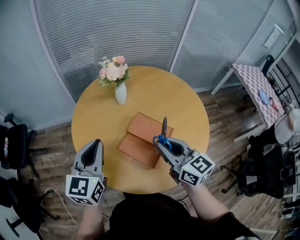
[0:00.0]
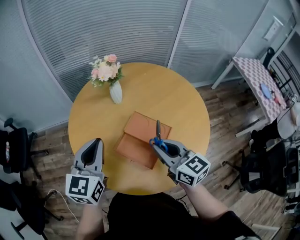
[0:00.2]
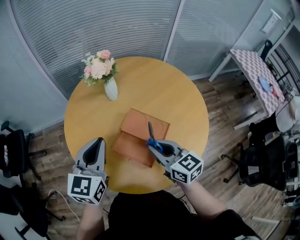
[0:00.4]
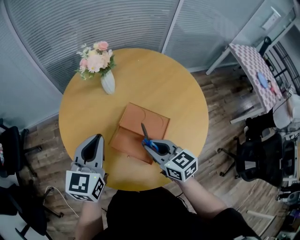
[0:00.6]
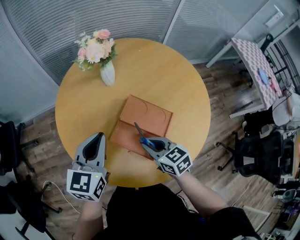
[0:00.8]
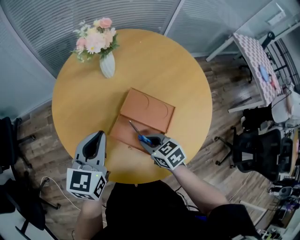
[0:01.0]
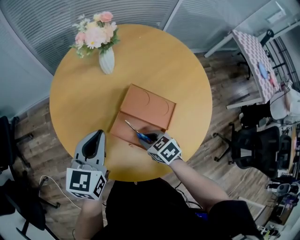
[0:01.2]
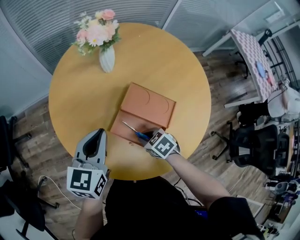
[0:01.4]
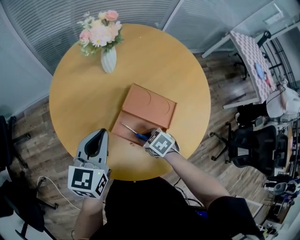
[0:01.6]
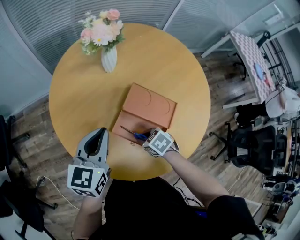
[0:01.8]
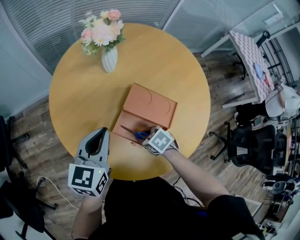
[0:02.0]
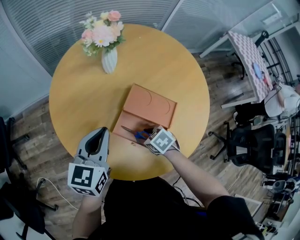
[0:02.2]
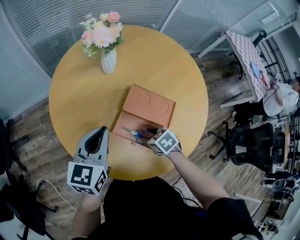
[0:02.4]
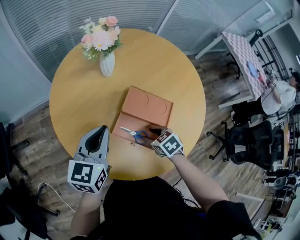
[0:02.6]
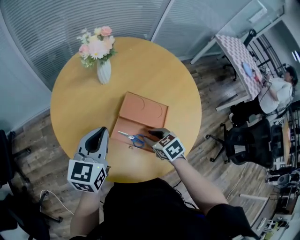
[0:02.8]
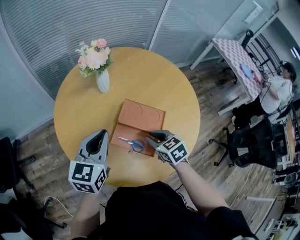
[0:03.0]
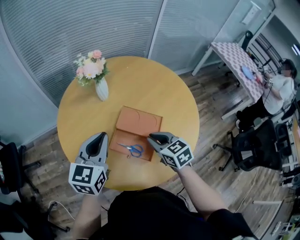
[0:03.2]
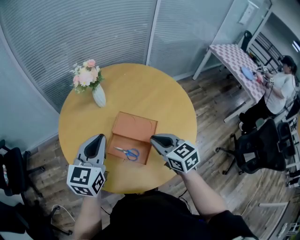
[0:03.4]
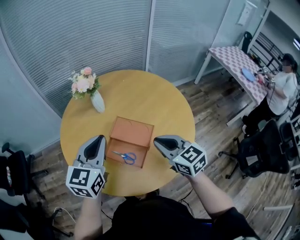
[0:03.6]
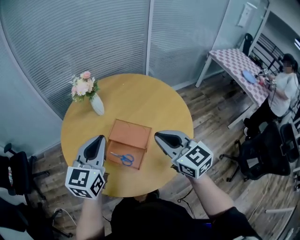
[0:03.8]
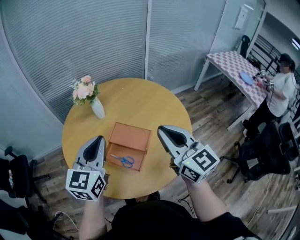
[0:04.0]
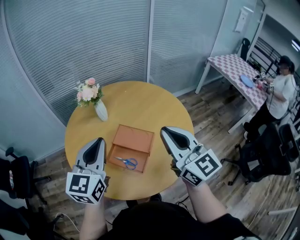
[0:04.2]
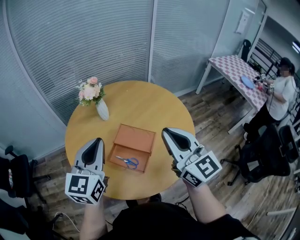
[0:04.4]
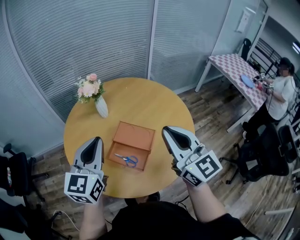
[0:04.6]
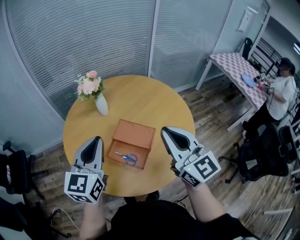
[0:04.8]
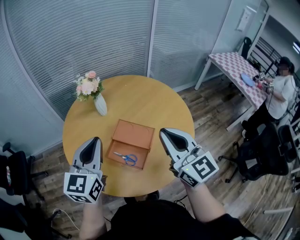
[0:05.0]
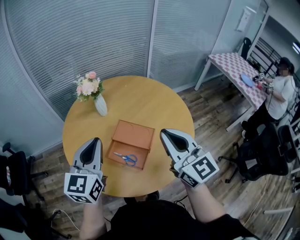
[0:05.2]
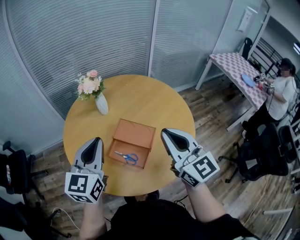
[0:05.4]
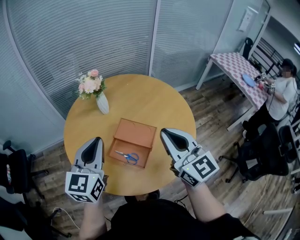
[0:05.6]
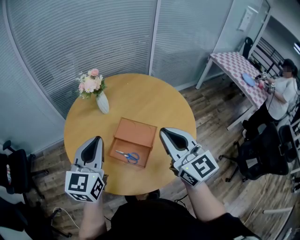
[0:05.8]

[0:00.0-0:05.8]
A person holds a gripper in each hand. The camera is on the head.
0.0 to 1.4 s: The left gripper moves downward, some 15 cm; the right gripper heads downward, covering roughly 30 cm, and tips its fingers downward by roughly 50 degrees.
1.4 to 2.8 s: The right gripper heads upward, covering approximately 5 cm.
2.8 to 4.4 s: The left gripper goes roughly 20 cm upward and to the right, while the right gripper heads upward, covering roughly 35 cm, angles its fingers upward, by some 60 degrees, and closes.
4.4 to 5.8 s: The grippers make only small movements.

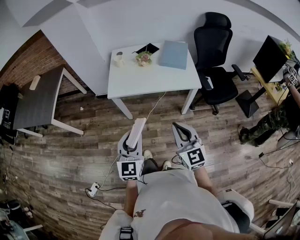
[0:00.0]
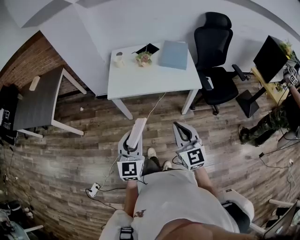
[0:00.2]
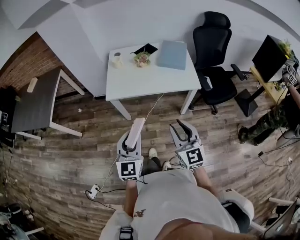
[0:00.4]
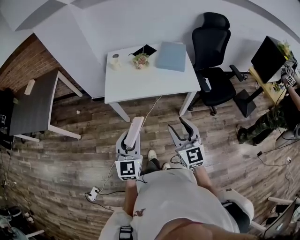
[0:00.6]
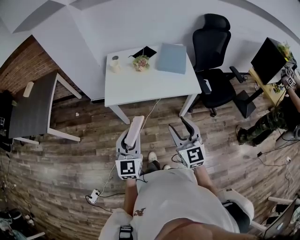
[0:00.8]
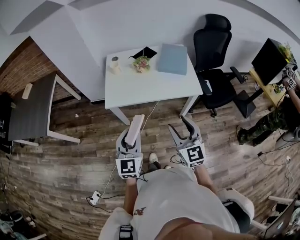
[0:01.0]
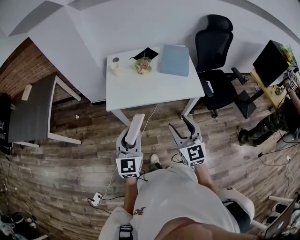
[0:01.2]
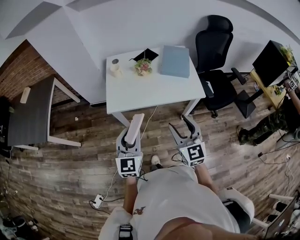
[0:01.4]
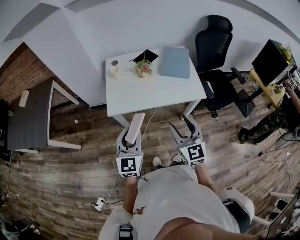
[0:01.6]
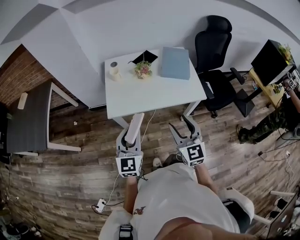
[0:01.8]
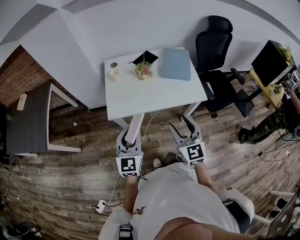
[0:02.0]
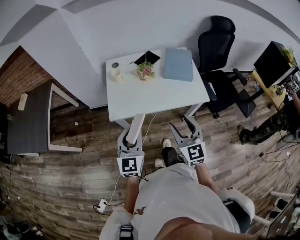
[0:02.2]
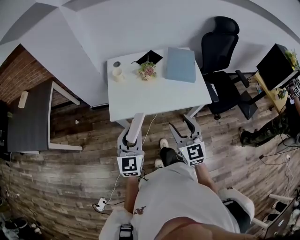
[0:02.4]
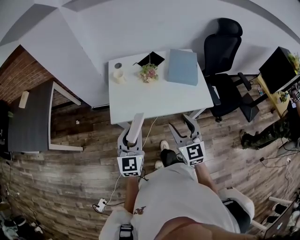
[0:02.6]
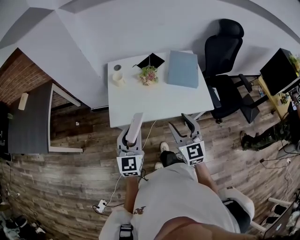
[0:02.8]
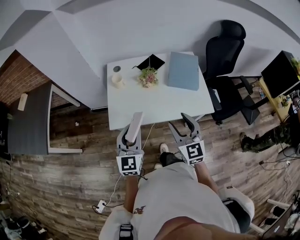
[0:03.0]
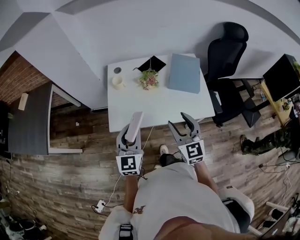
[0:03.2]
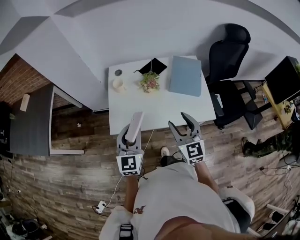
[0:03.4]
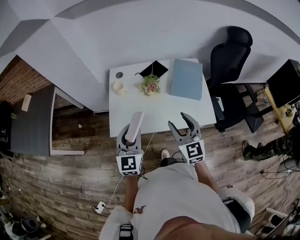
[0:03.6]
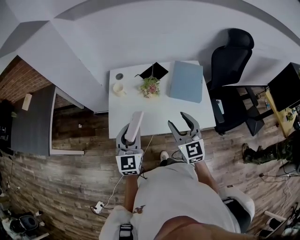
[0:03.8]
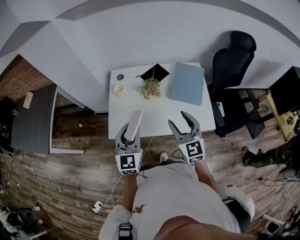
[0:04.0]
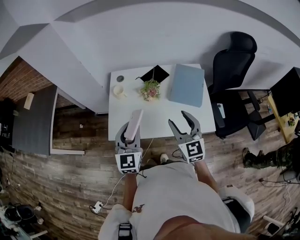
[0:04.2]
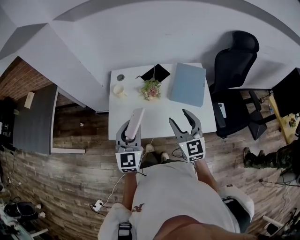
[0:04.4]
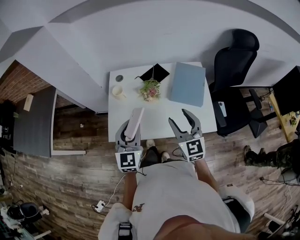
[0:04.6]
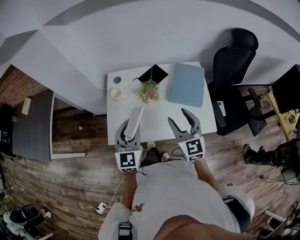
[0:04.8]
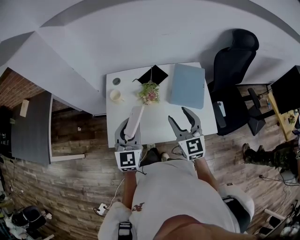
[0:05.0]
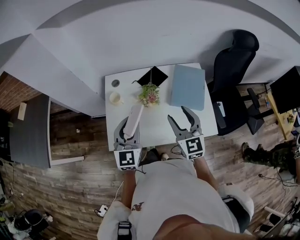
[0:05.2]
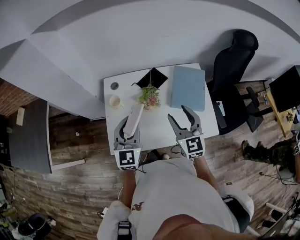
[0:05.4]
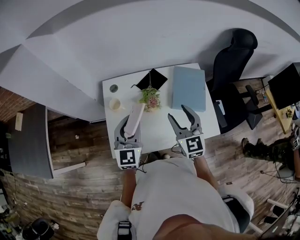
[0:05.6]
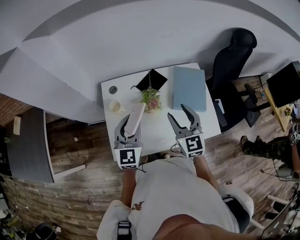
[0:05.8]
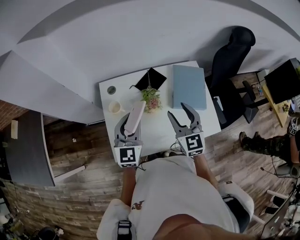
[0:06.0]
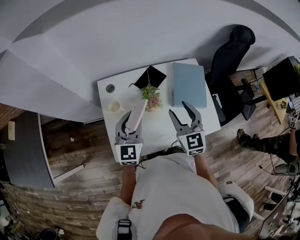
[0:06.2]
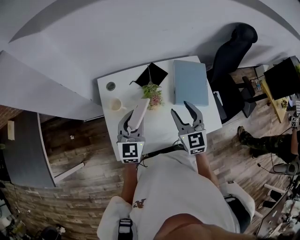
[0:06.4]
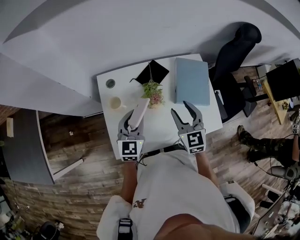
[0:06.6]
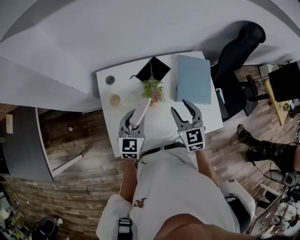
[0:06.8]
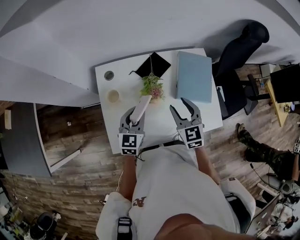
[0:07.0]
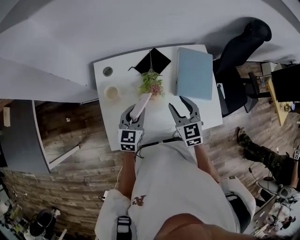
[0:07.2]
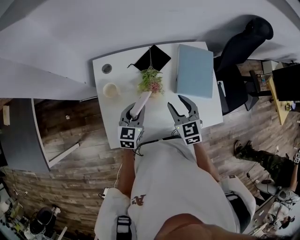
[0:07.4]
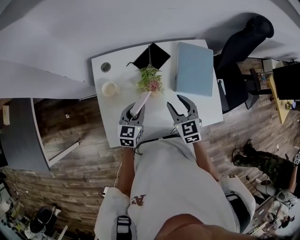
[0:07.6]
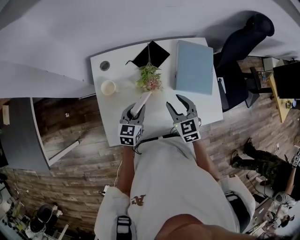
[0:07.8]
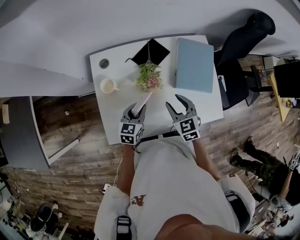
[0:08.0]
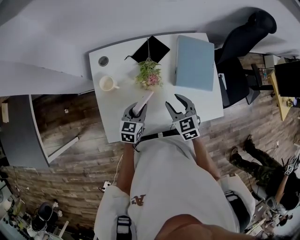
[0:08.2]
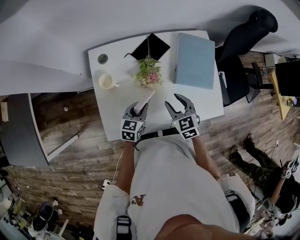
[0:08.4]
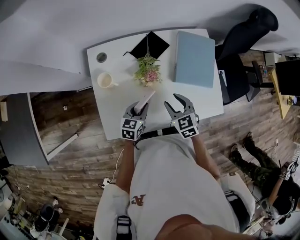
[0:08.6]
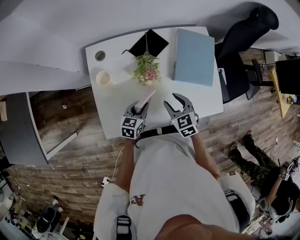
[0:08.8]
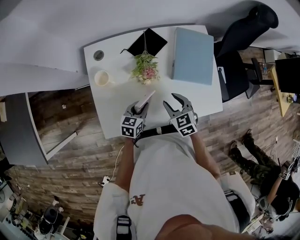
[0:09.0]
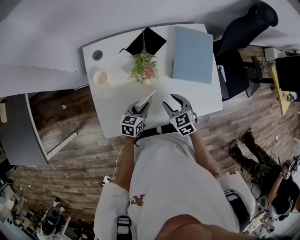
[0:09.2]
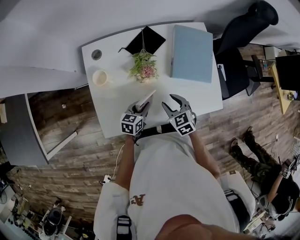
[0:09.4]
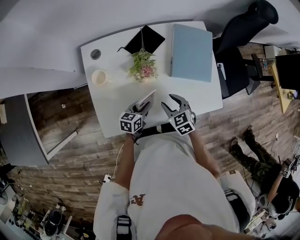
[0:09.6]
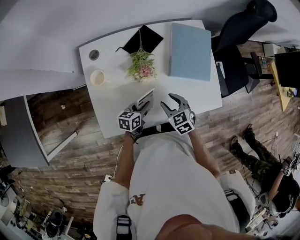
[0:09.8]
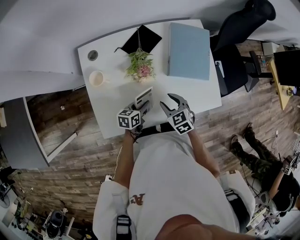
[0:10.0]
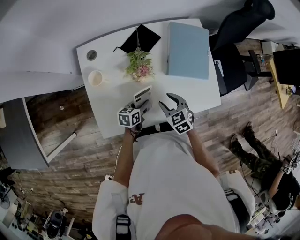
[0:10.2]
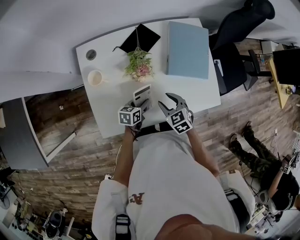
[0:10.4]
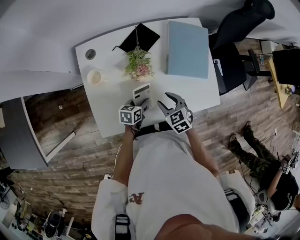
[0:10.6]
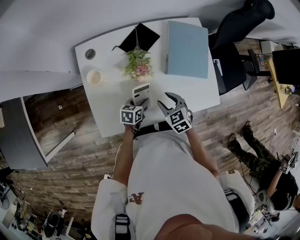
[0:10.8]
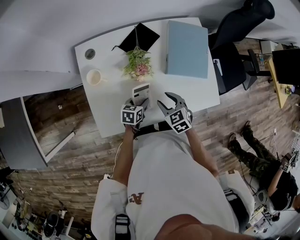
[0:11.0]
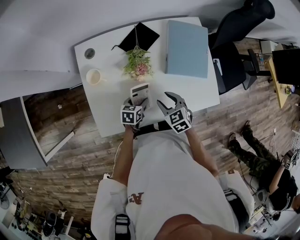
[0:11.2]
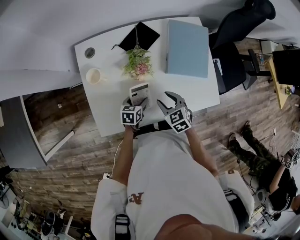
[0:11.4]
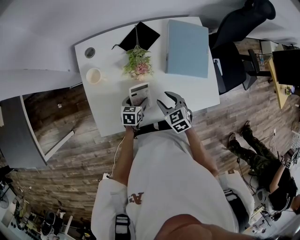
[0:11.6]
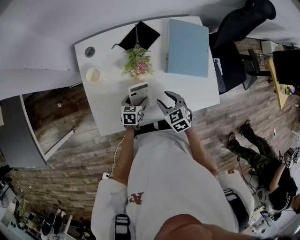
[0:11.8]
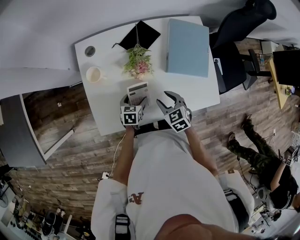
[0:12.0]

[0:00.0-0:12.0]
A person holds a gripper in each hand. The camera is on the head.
0.0 to 1.6 s: The grippers both shift forward by approximately 20 cm. The right gripper opens its fingers.
1.6 to 3.0 s: Both grippers travel together forward, approximately 15 cm.
3.0 to 4.4 s: Both grippers travel together forward and to the right, approximately 15 cm.
4.4 to 6.0 s: Both grippers travel together forward, roughly 15 cm.
6.0 to 7.6 s: The grippers both shift downward by some 15 cm. The left gripper changes its angle by some 30 degrees. Meanwhile the right gripper turns by roughly 20 degrees.
7.6 to 9.0 s: The left gripper is displaced downward and backward by some 10 cm. The right gripper travels downward by roughly 10 cm.
9.0 to 10.4 s: The left gripper shifts approximately 5 cm downward.
10.4 to 12.0 s: The left gripper opens up.

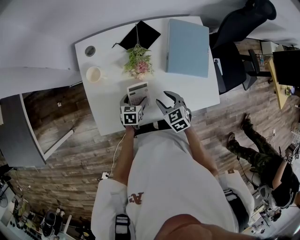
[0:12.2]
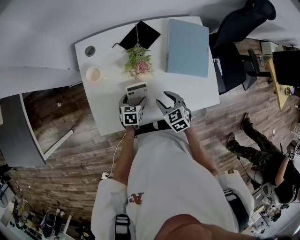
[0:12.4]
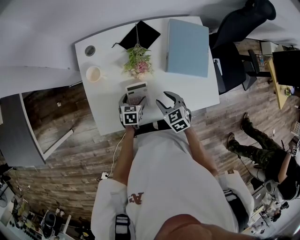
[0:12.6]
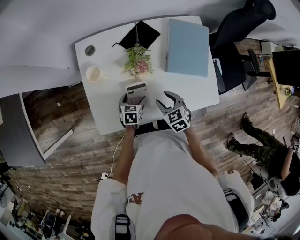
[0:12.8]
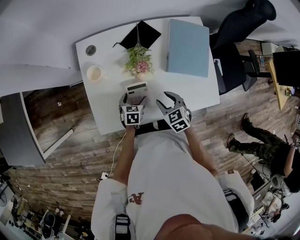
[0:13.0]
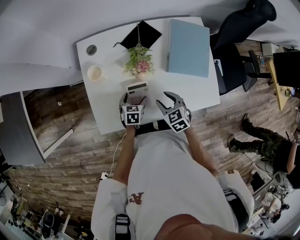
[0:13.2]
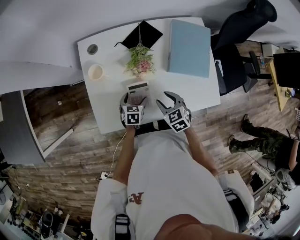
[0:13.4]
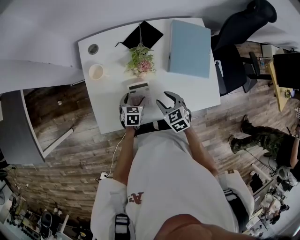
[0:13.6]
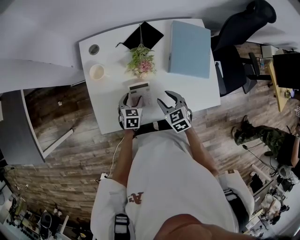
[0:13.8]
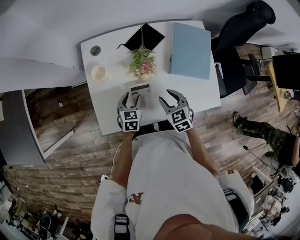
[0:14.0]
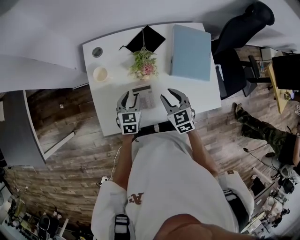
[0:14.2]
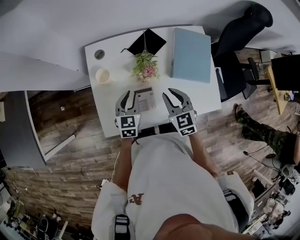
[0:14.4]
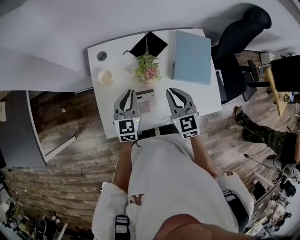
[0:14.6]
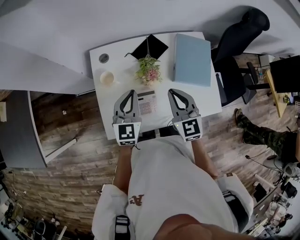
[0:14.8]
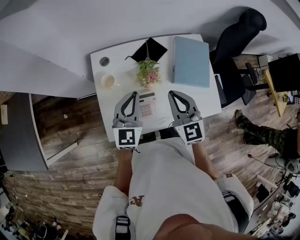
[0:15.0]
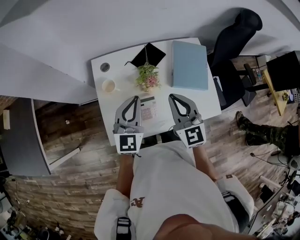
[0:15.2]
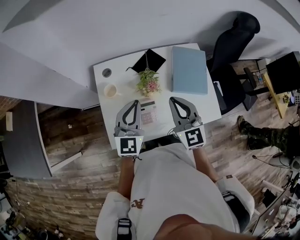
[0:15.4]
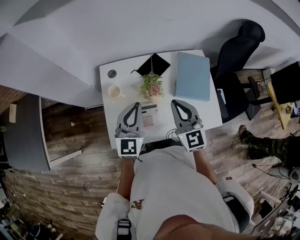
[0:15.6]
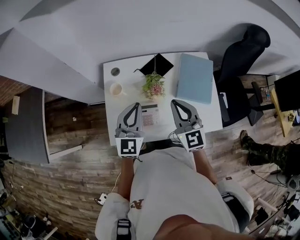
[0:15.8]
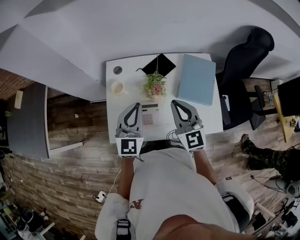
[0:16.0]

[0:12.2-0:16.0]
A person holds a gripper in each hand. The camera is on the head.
12.2 to 13.4 s: The grippers move only a little.
13.4 to 14.8 s: The two grippers go about 25 cm upward. The left gripper tilts its fingers approximately 40 degrees upward, and closes its fingers; the right gripper tilts its fingers roughly 30 degrees upward, and closes up.
14.8 to 16.0 s: The grippers both shift upward by approximately 5 cm.

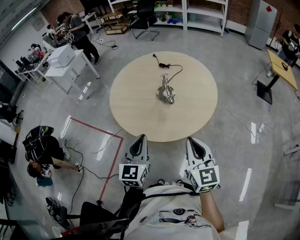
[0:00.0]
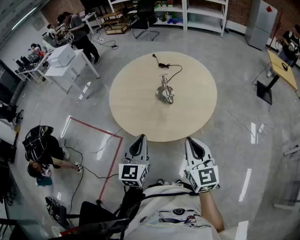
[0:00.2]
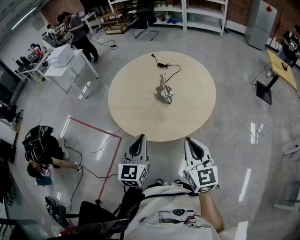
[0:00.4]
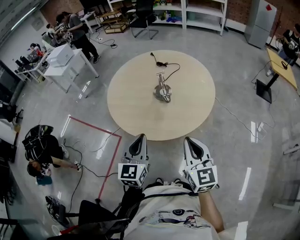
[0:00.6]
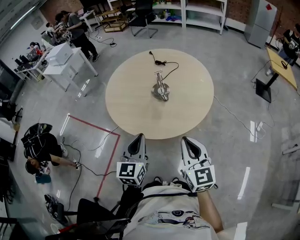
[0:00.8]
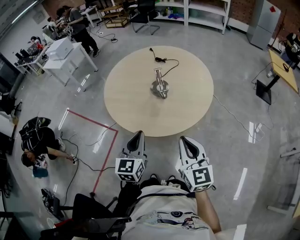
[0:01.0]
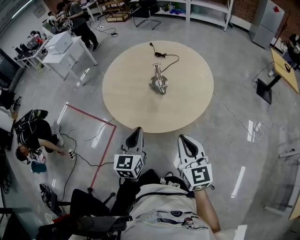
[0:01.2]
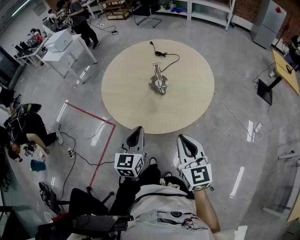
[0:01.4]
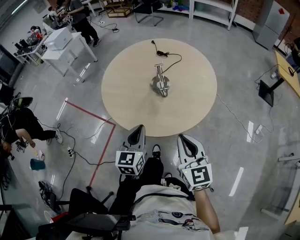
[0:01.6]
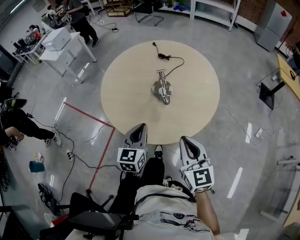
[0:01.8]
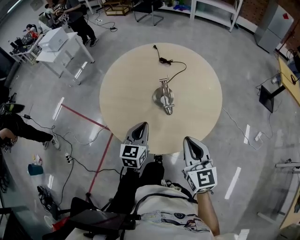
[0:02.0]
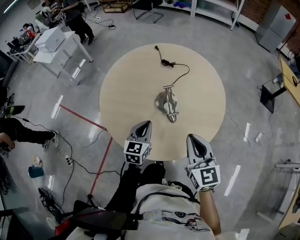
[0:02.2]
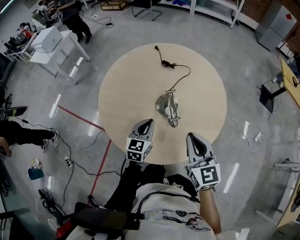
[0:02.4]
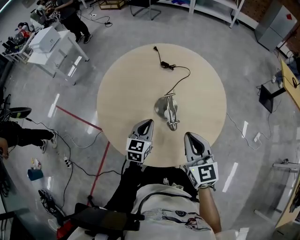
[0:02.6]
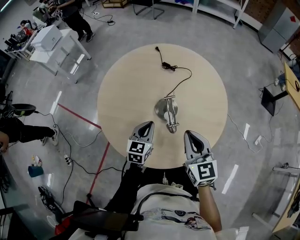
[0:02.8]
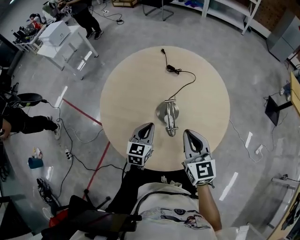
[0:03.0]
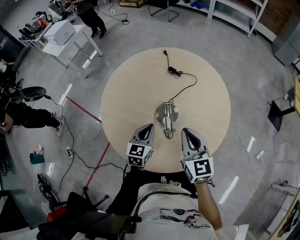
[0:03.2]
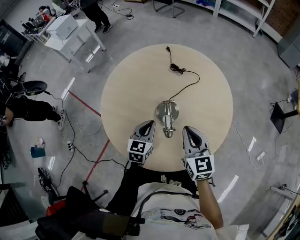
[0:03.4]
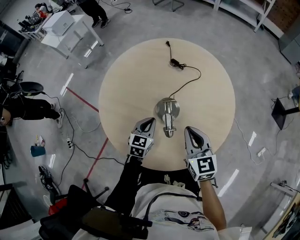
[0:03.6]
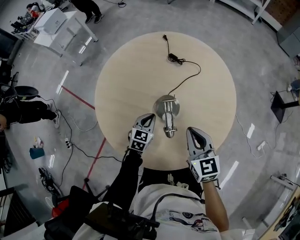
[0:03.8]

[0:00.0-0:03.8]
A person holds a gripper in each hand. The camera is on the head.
0.0 to 1.2 s: The left gripper moves to the right, approximately 5 cm.
1.2 to 2.6 s: Both grippers move forward, approximately 30 cm.
2.6 to 3.8 s: The left gripper heads downward and forward, covering some 15 cm. The right gripper travels forward and downward by roughly 10 cm.
